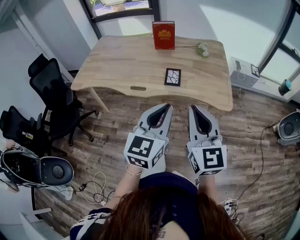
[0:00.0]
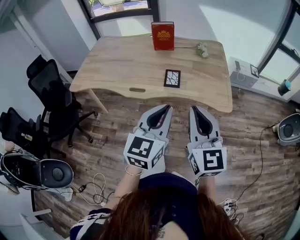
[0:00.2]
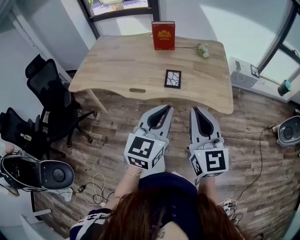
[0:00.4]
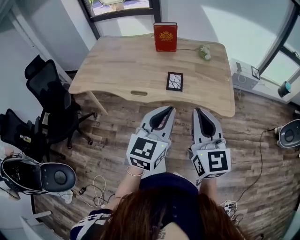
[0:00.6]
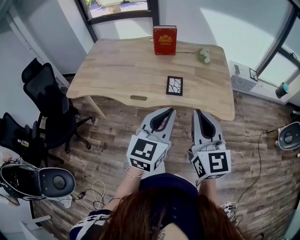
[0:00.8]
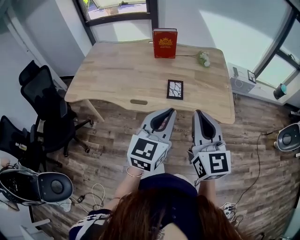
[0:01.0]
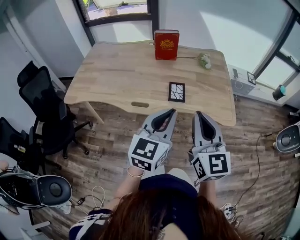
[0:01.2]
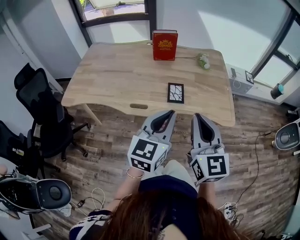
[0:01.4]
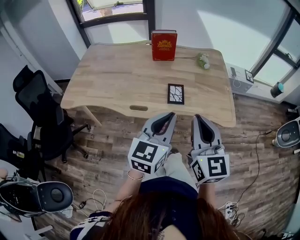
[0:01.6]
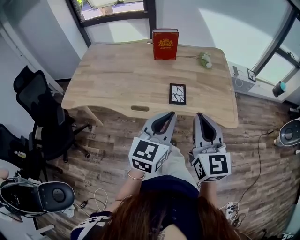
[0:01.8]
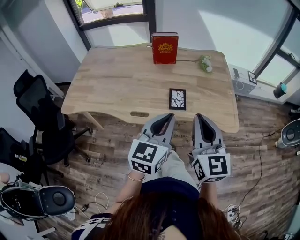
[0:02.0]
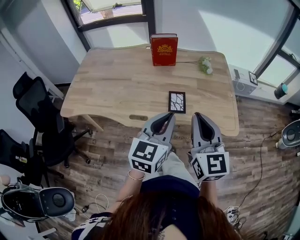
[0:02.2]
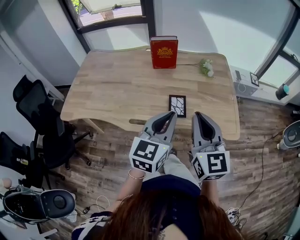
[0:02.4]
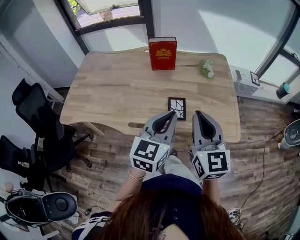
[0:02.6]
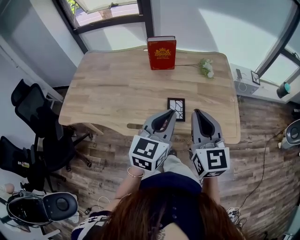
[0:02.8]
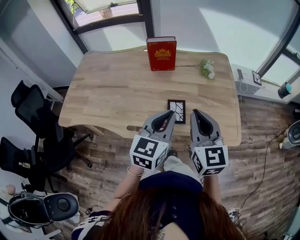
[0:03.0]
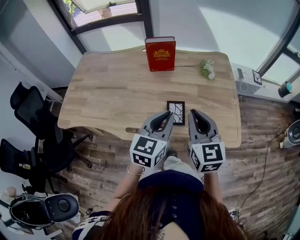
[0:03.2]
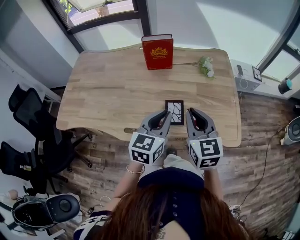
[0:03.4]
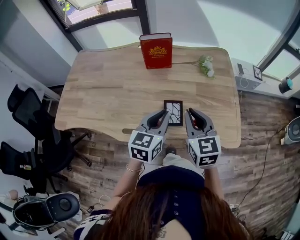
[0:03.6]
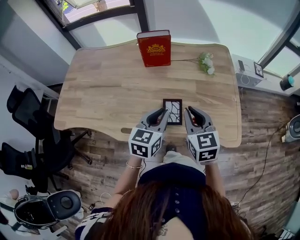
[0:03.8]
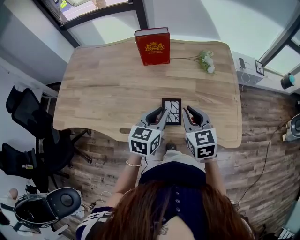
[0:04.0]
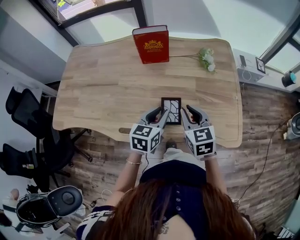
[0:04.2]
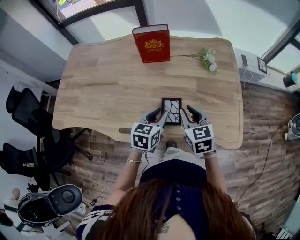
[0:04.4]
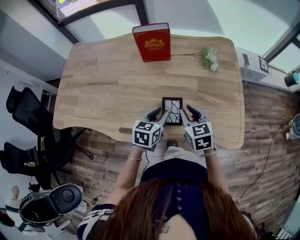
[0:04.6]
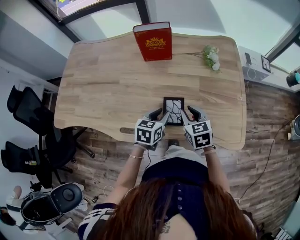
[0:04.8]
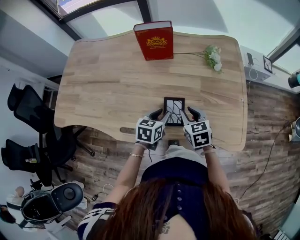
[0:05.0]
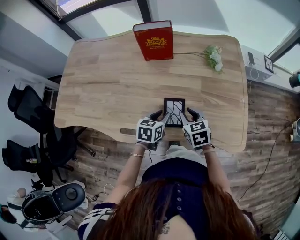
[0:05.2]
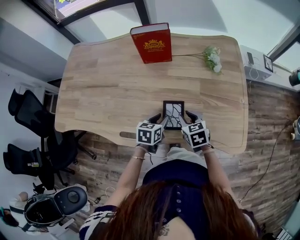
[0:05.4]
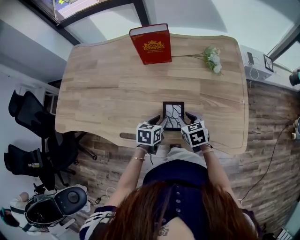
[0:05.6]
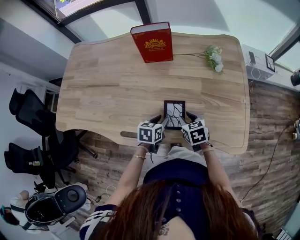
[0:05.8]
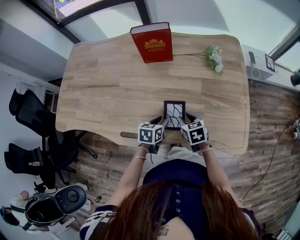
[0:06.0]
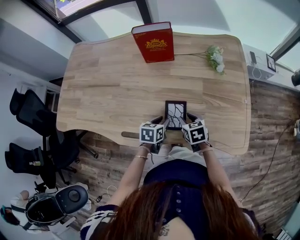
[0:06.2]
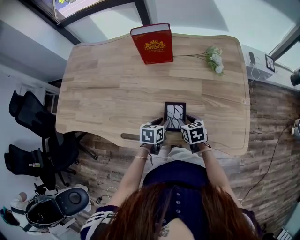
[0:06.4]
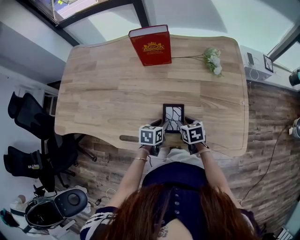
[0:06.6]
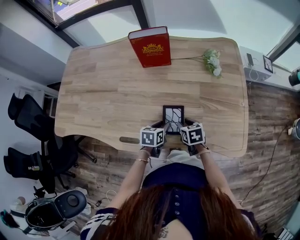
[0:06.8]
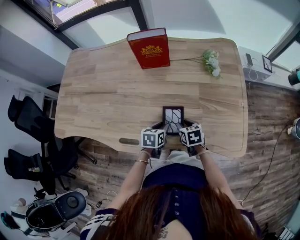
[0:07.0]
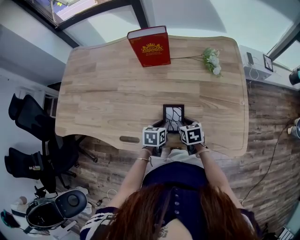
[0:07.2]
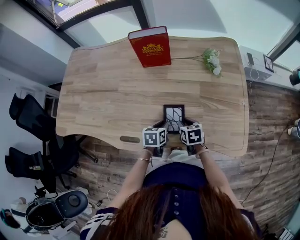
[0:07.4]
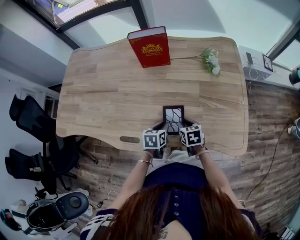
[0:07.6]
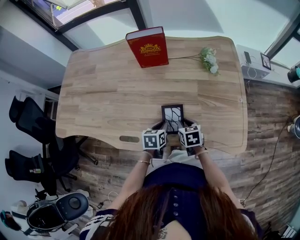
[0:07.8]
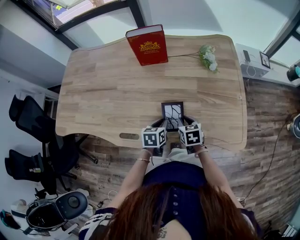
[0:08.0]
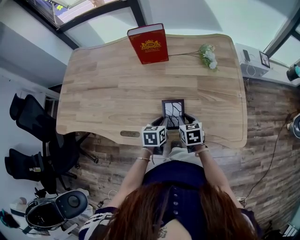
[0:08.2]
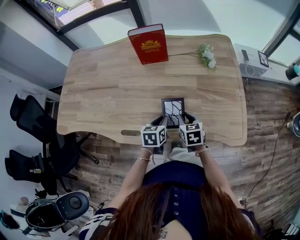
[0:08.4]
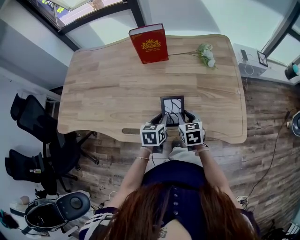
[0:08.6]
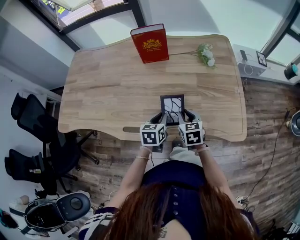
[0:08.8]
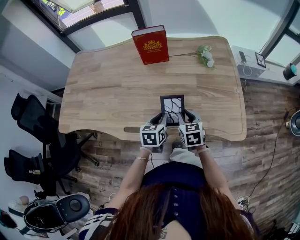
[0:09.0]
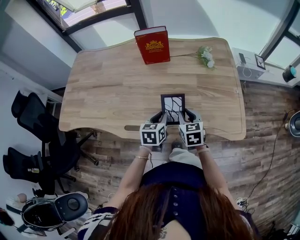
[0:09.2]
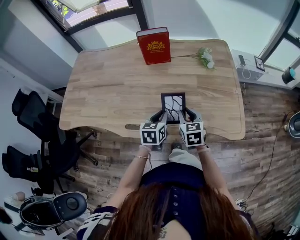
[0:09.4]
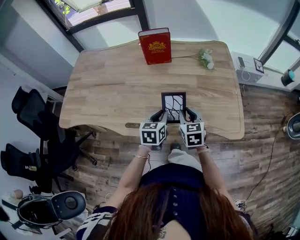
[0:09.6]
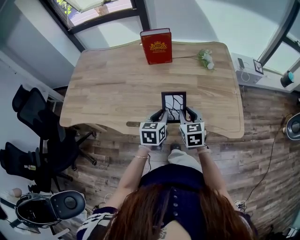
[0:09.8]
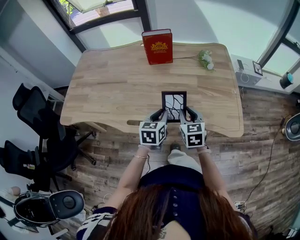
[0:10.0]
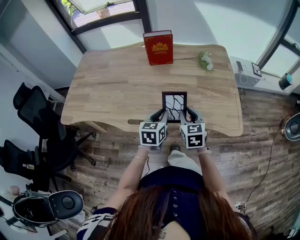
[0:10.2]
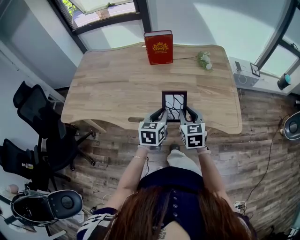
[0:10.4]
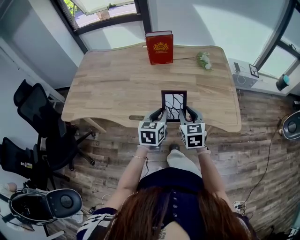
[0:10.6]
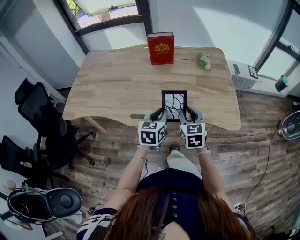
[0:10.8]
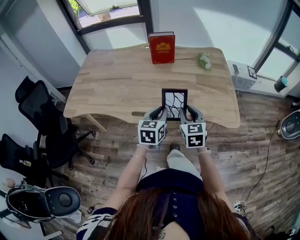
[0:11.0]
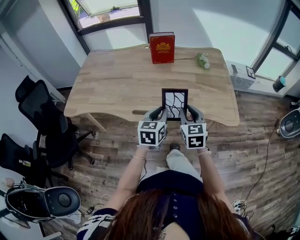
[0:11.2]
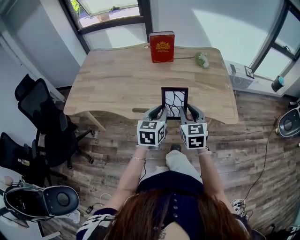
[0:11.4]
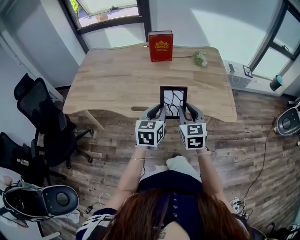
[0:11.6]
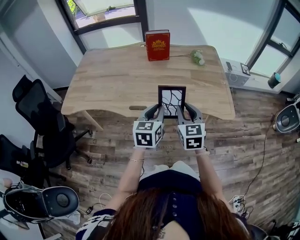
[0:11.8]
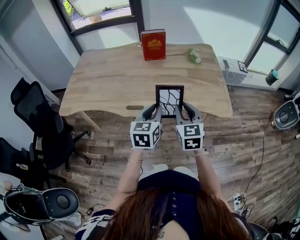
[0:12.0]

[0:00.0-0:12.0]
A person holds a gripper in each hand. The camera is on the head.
0:00.0 to 0:01.6: Both grippers travel together forward and to the left, approximately 15 cm.
0:01.6 to 0:03.0: The two grippers go approximately 15 cm forward.
0:03.0 to 0:04.4: Both grippers travel together downward and forward, approximately 20 cm. The left gripper turns by some 20 degrees. Meanwhile the right gripper changes its angle by about 30 degrees.
0:04.4 to 0:06.0: Both grippers move downward, roughly 15 cm. The right gripper rotates about 20 degrees.
0:06.0 to 0:07.6: The grippers move only a little.
0:07.6 to 0:09.0: The two grippers go about 10 cm upward.
0:09.0 to 0:10.4: Both grippers move upward and backward, approximately 10 cm.
0:10.4 to 0:12.0: Both grippers move backward and upward, some 15 cm.

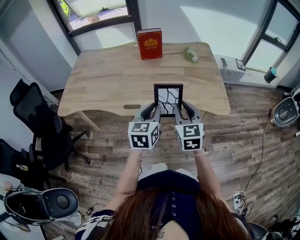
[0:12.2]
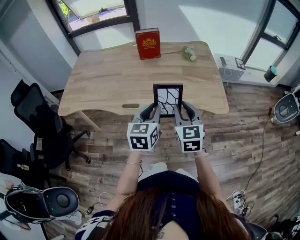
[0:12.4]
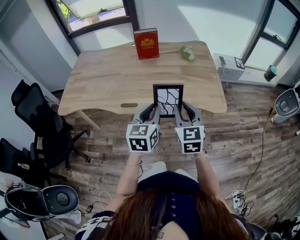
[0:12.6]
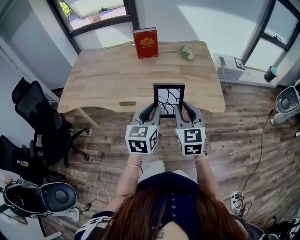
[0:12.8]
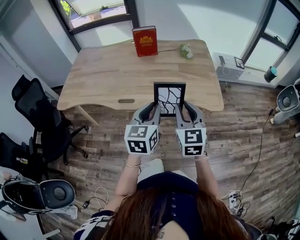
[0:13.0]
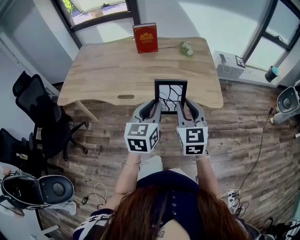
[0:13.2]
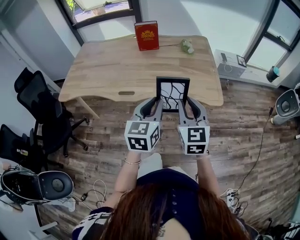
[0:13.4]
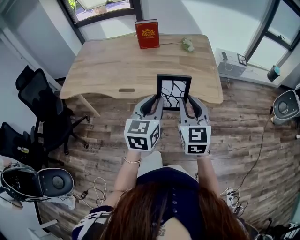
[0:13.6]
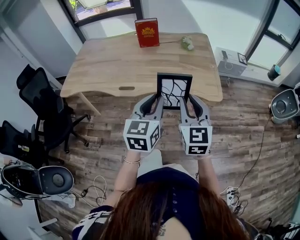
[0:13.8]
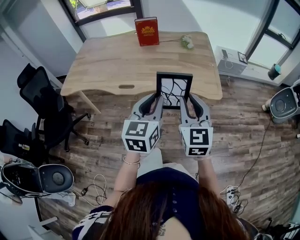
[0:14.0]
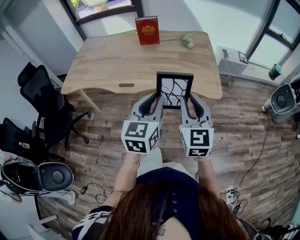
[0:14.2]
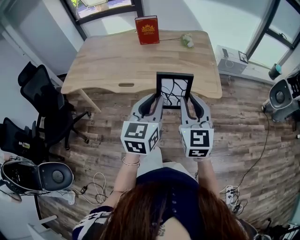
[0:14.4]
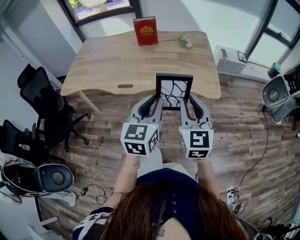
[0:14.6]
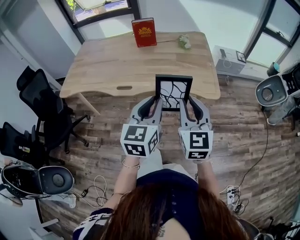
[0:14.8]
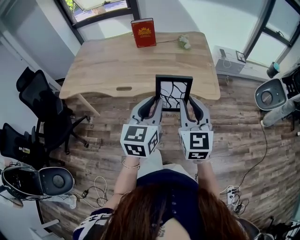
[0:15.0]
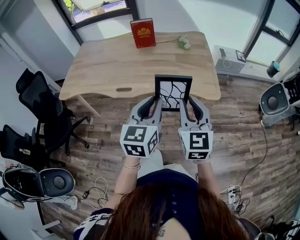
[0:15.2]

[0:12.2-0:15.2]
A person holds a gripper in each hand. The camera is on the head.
0:12.2 to 0:13.8: The two grippers go roughly 15 cm backward, to the right and upward.
0:13.8 to 0:15.2: The grippers stay close to where they were, moving slightly.

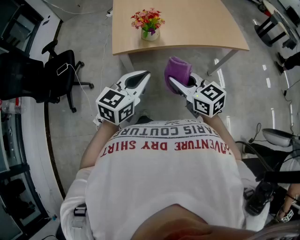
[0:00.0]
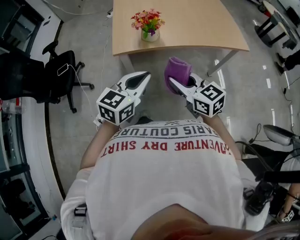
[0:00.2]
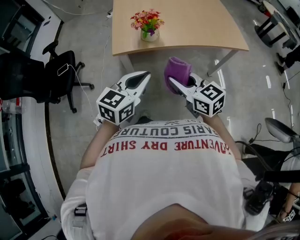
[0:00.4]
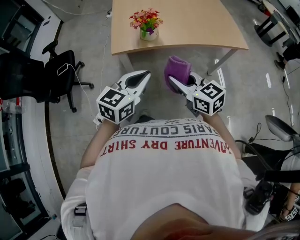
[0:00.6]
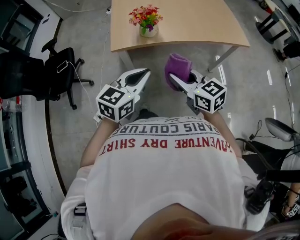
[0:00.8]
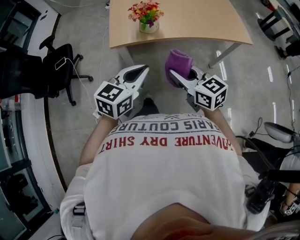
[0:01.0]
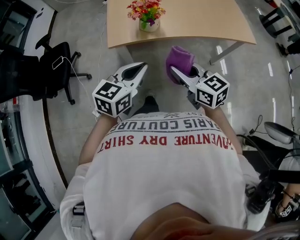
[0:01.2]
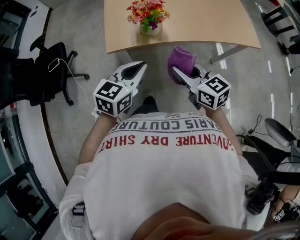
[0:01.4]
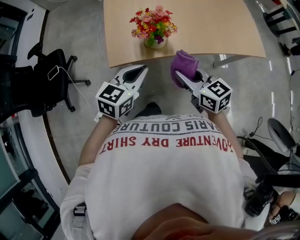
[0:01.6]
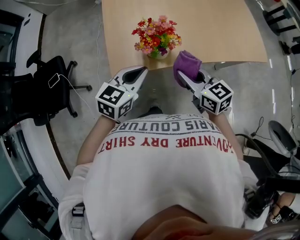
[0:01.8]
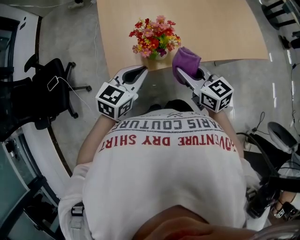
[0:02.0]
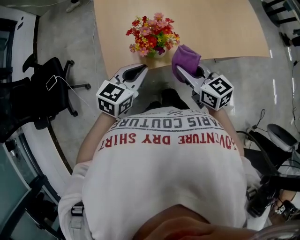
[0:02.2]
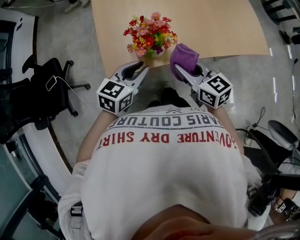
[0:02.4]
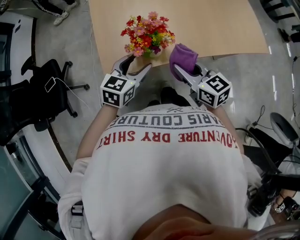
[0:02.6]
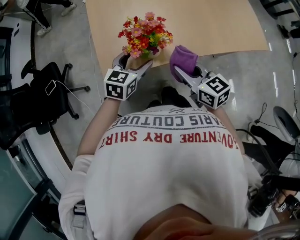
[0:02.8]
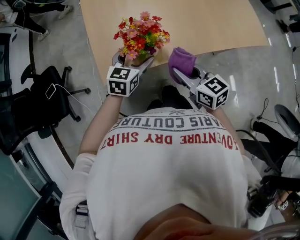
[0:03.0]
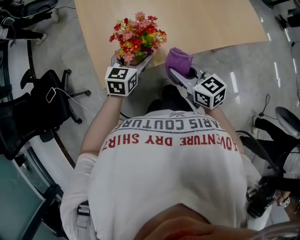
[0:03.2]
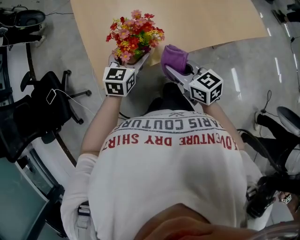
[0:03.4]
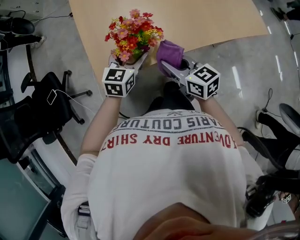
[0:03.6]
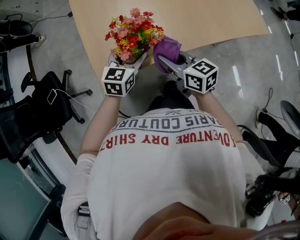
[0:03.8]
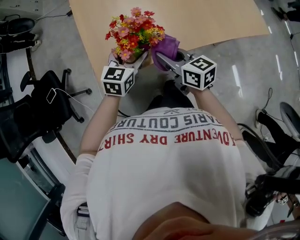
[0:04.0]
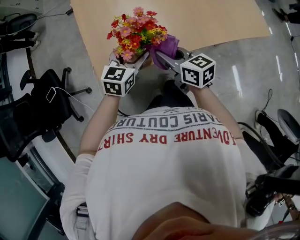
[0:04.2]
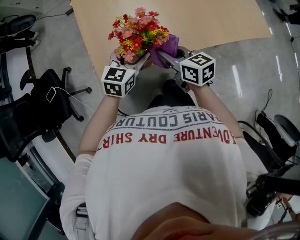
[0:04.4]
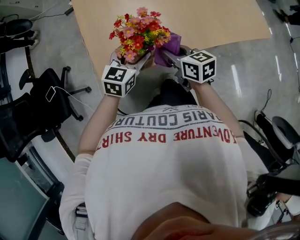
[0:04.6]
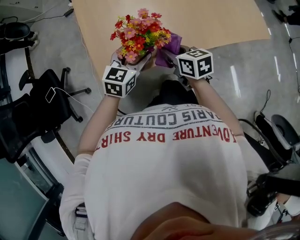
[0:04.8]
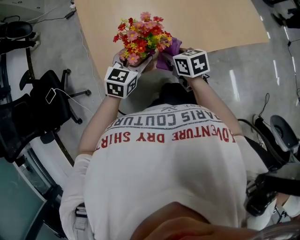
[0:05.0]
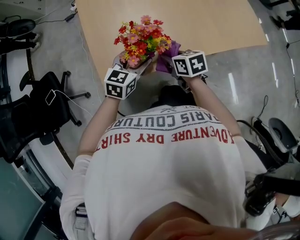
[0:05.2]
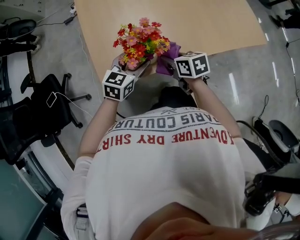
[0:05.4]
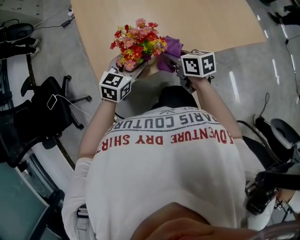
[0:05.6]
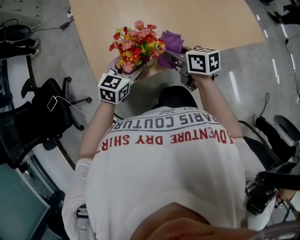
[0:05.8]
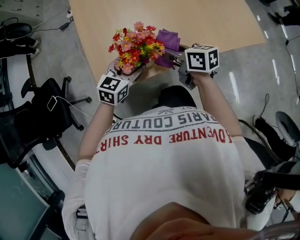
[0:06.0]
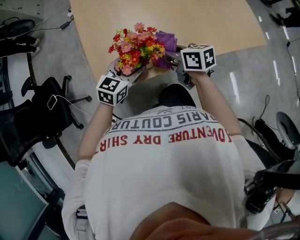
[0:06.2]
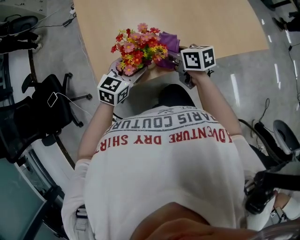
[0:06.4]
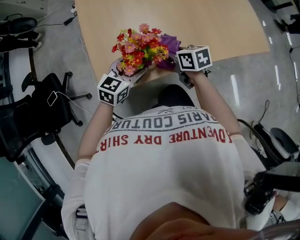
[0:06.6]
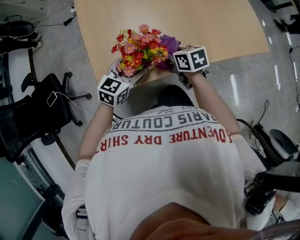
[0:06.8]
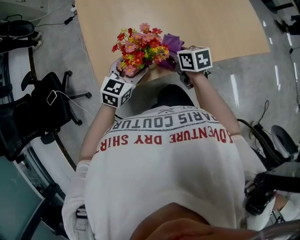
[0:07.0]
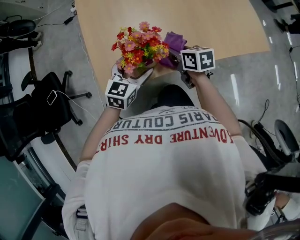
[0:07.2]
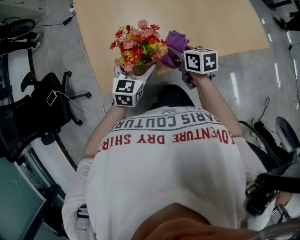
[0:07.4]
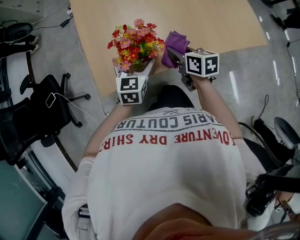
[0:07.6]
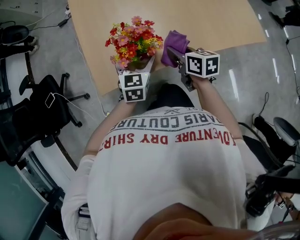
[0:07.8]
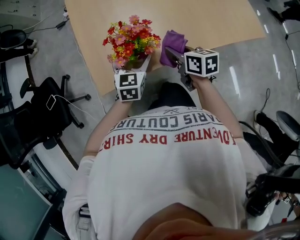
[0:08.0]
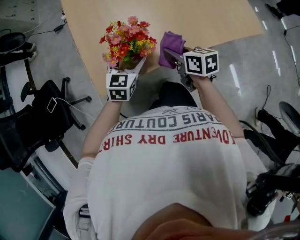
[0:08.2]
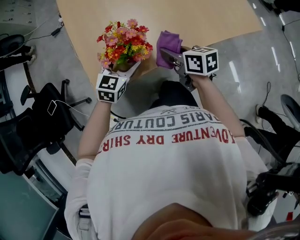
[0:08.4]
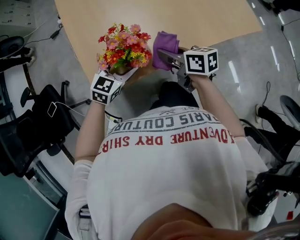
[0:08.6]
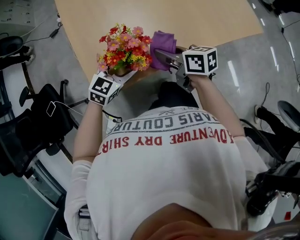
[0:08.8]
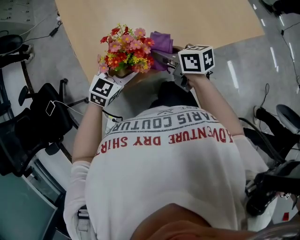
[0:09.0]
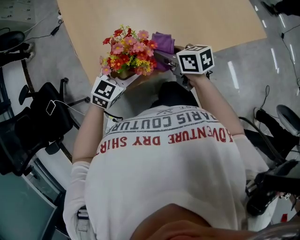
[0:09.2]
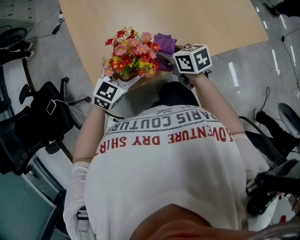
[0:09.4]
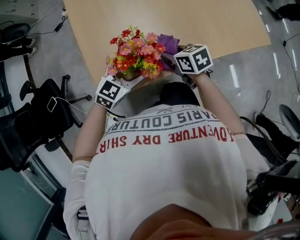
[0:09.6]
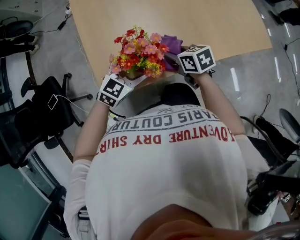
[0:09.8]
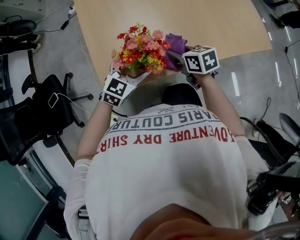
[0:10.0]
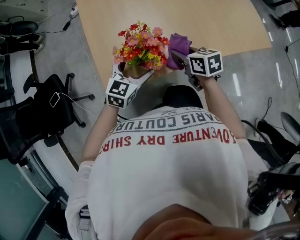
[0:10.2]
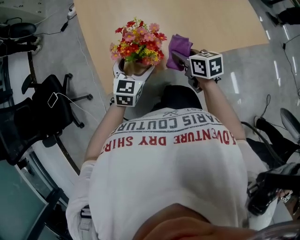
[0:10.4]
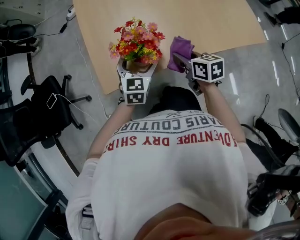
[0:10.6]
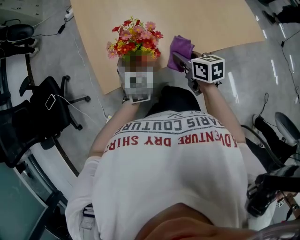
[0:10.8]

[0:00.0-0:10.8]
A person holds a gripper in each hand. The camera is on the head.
0:00.0 to 0:01.6: Both grippers travel together forward and downward, roughly 20 cm.
0:01.6 to 0:03.0: The left gripper is displaced forward and downward by some 20 cm, and opens up. Meanwhile the right gripper goes some 10 cm forward.
0:03.0 to 0:04.6: The right gripper heads forward, covering approximately 10 cm.
0:04.6 to 0:06.2: The right gripper reaches about 5 cm downward, then returns.
0:06.2 to 0:07.8: The left gripper swivels roughly 30 degrees. Meanwhile the right gripper moves some 5 cm.
0:07.8 to 0:09.2: The left gripper changes its angle by about 40 degrees.
0:09.2 to 0:10.8: The left gripper turns by about 40 degrees, while the right gripper shifts by roughly 5 cm.
